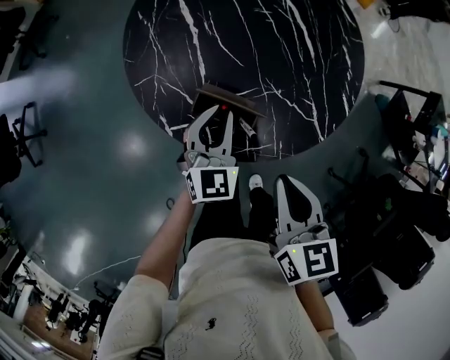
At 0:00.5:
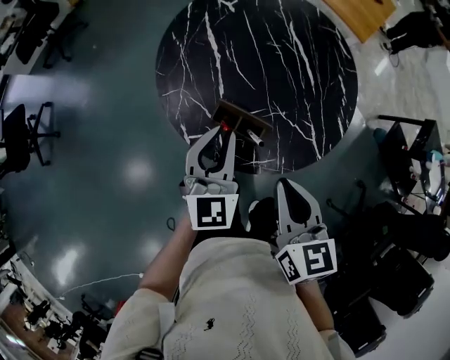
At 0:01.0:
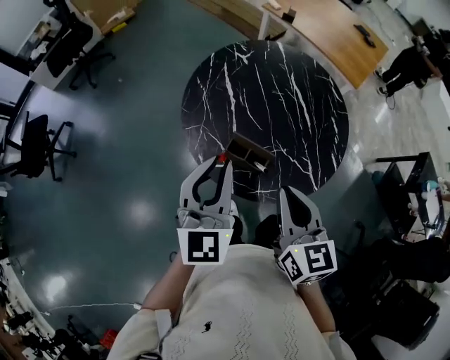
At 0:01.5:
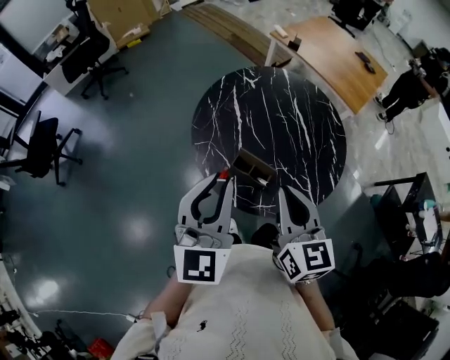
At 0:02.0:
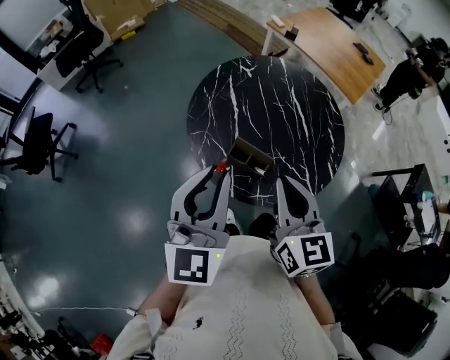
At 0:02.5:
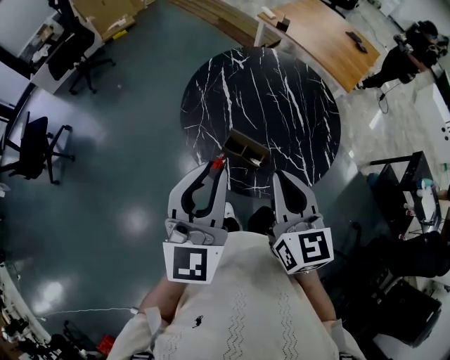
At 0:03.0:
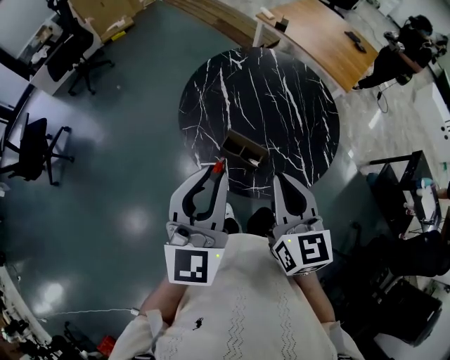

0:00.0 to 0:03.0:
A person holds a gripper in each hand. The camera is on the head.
0:00.0 to 0:01.5: The right gripper is displaced upward by roughly 20 cm, and rotates some 30 degrees; the left gripper heads upward, covering some 35 cm, and swivels roughly 30 degrees.
0:01.5 to 0:03.0: There are only small adjustments of the grippers.

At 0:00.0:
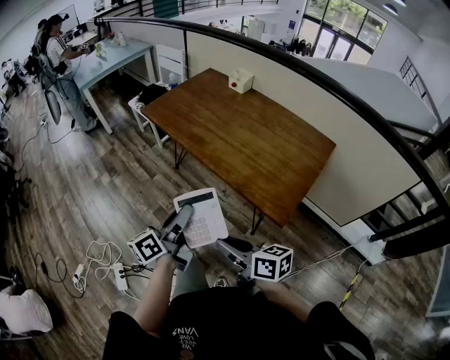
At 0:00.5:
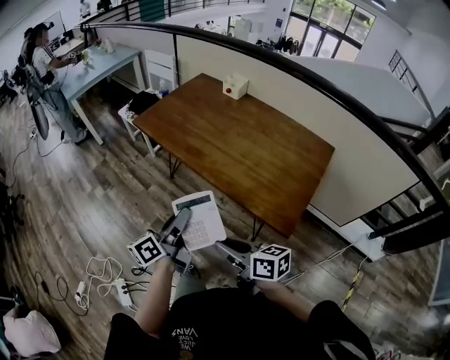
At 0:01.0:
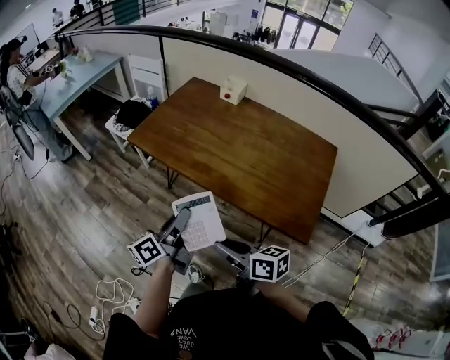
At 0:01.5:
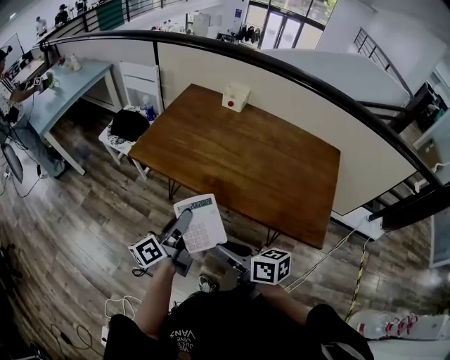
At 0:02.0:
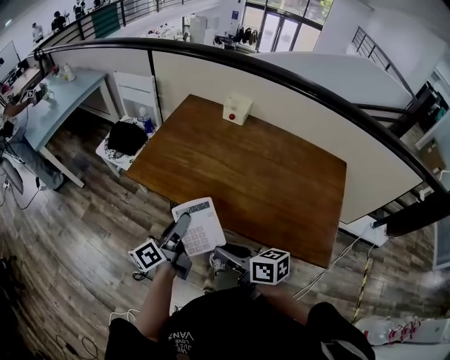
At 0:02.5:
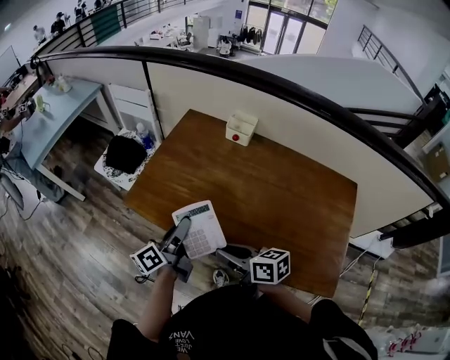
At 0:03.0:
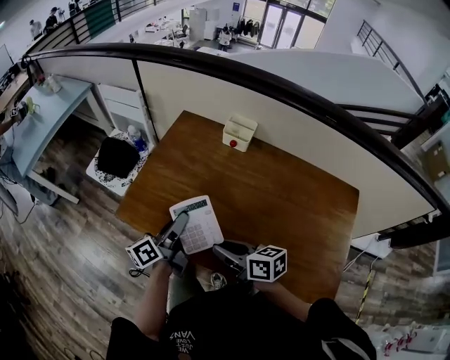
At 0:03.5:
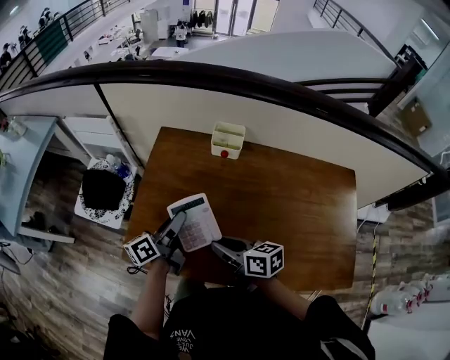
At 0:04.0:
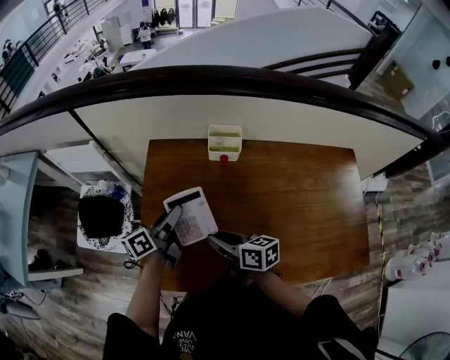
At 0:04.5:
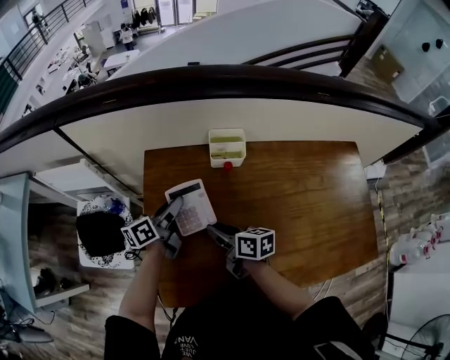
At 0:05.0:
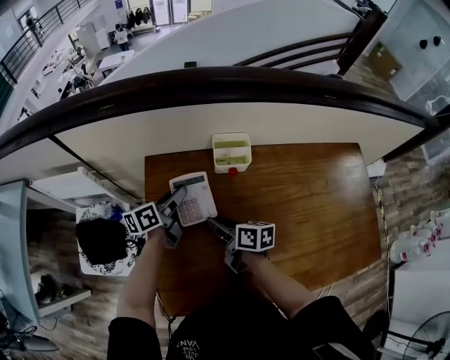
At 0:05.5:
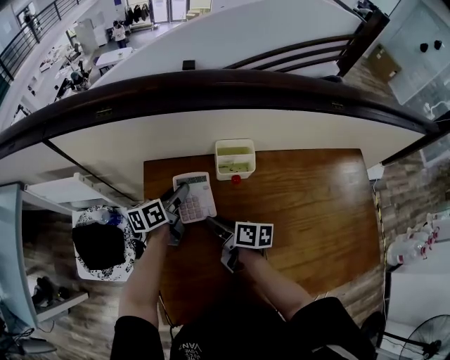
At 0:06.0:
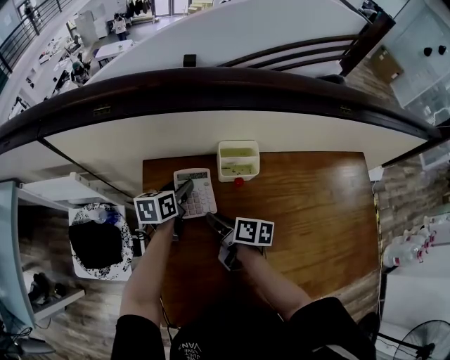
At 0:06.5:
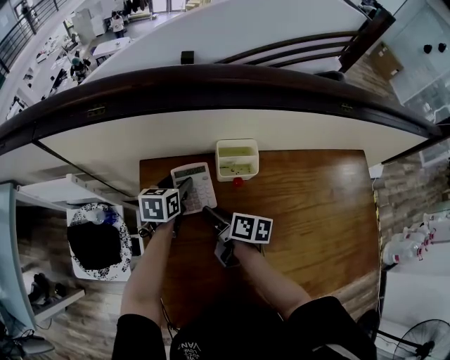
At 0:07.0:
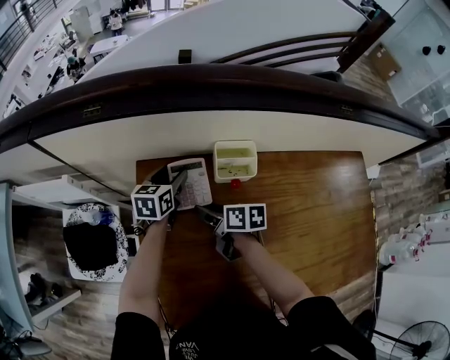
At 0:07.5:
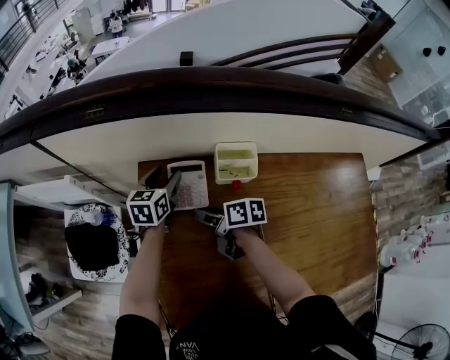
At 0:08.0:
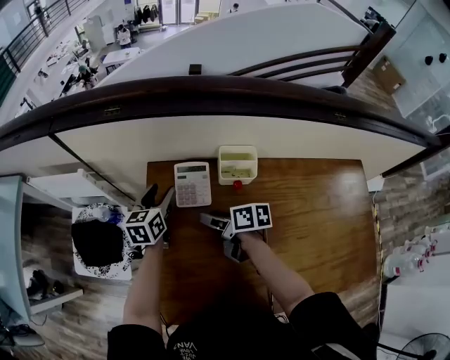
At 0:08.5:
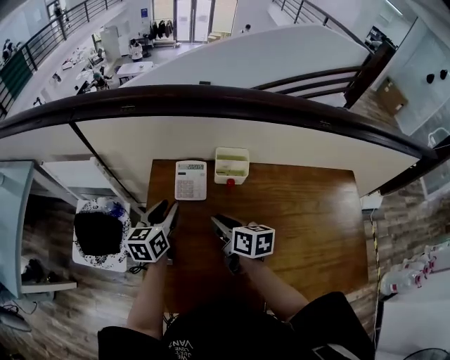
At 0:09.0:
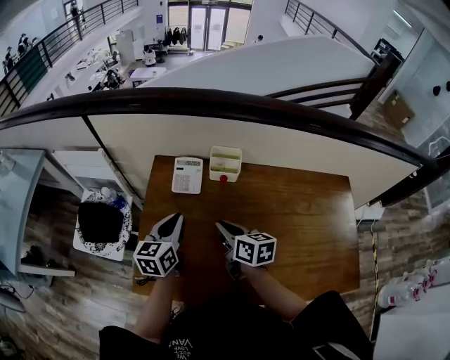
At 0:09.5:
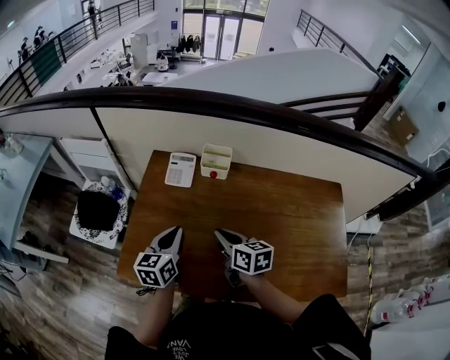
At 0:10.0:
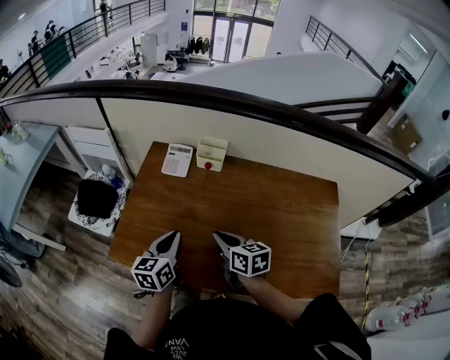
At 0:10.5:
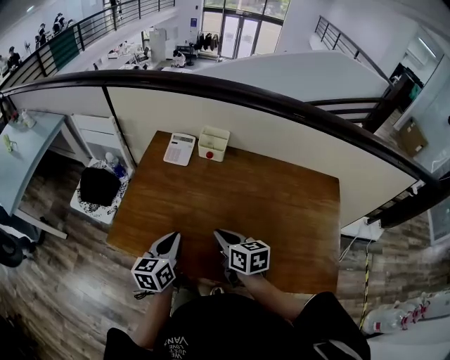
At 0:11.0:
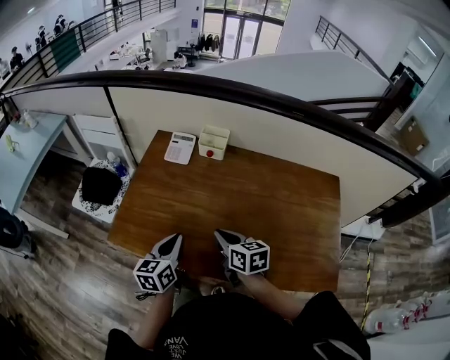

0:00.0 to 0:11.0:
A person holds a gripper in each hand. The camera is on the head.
0:00.0 to 0:02.0: The left gripper is displaced forward by about 35 cm, while the right gripper goes some 35 cm forward and to the left.
0:02.0 to 0:03.5: Both grippers move forward, some 30 cm.
0:03.5 to 0:05.5: The right gripper is displaced forward and downward by approximately 25 cm, and changes its angle by roughly 30 degrees; the left gripper goes approximately 30 cm forward, and changes its angle by some 30 degrees.
0:05.5 to 0:07.5: The left gripper moves forward, about 5 cm, rotates about 30 degrees, and opens; the right gripper ends up about 5 cm from where it was, and opens its fingers.
0:07.5 to 0:09.0: The right gripper heads backward, upward and to the right, covering roughly 20 cm, changes its angle by about 30 degrees, and closes its fingers, while the left gripper is displaced backward and upward by roughly 30 cm, and closes up.
0:09.0 to 0:11.0: The right gripper shifts approximately 20 cm backward and to the right, while the left gripper shifts some 20 cm backward.

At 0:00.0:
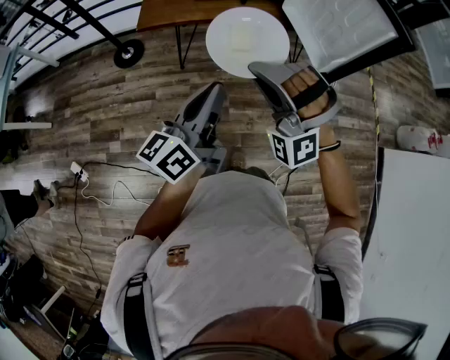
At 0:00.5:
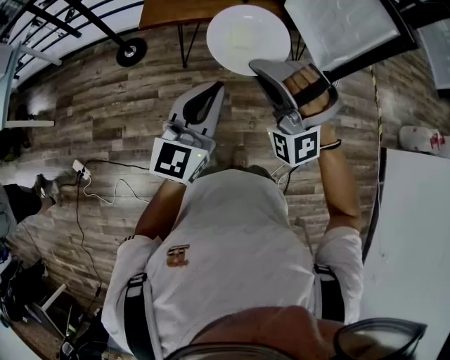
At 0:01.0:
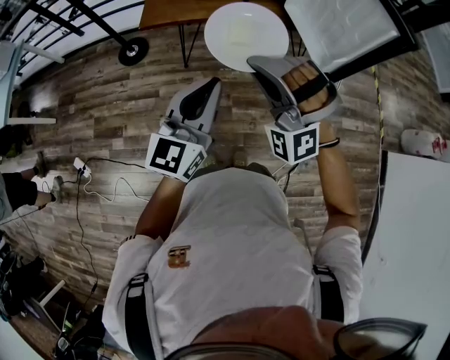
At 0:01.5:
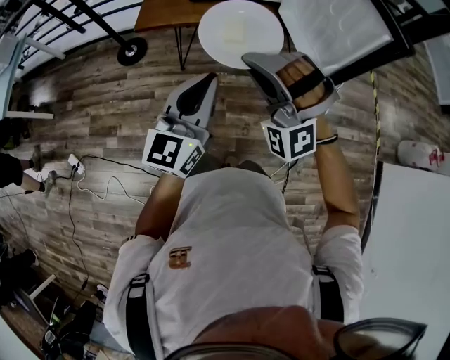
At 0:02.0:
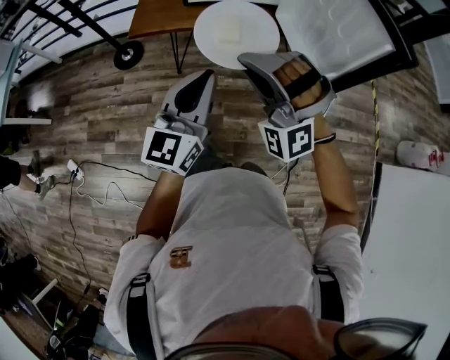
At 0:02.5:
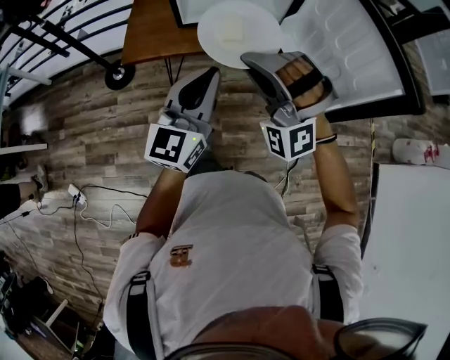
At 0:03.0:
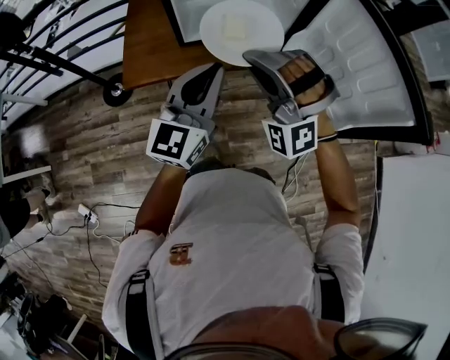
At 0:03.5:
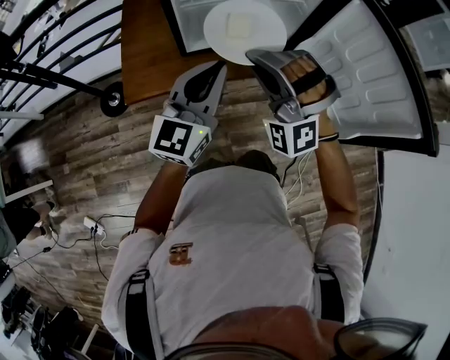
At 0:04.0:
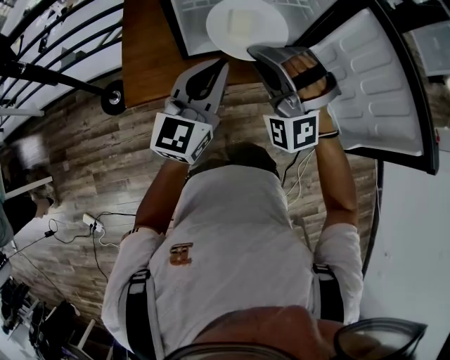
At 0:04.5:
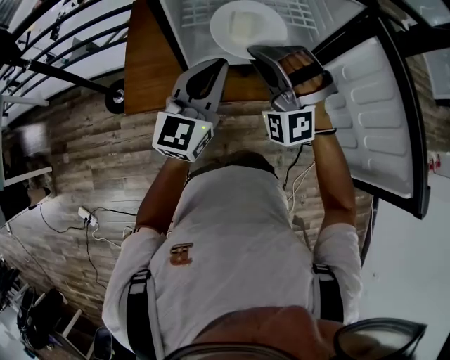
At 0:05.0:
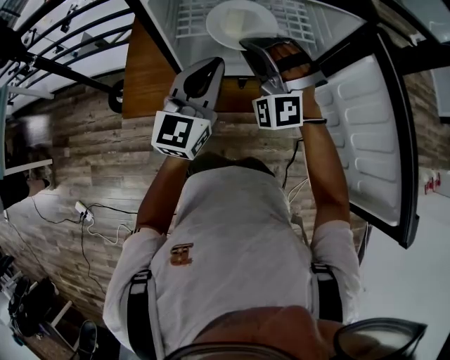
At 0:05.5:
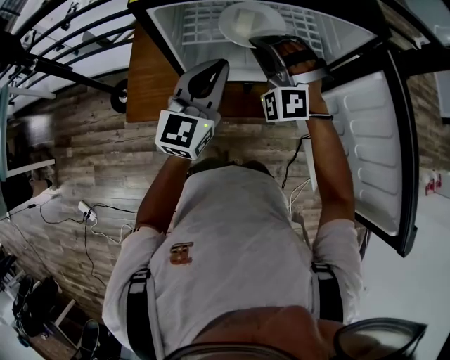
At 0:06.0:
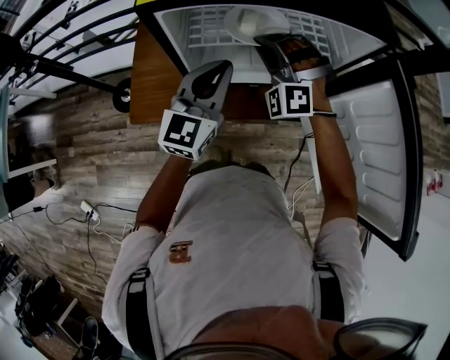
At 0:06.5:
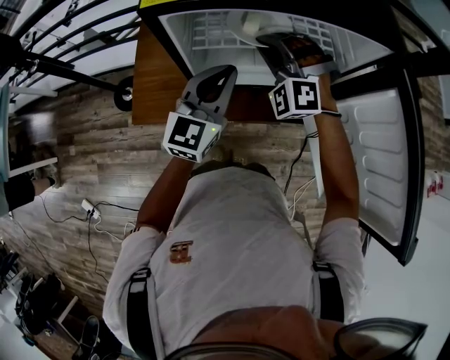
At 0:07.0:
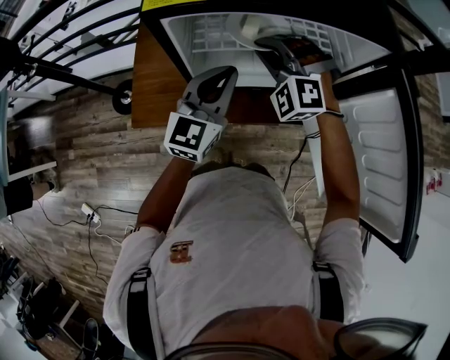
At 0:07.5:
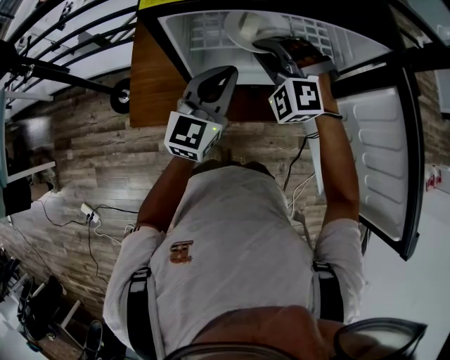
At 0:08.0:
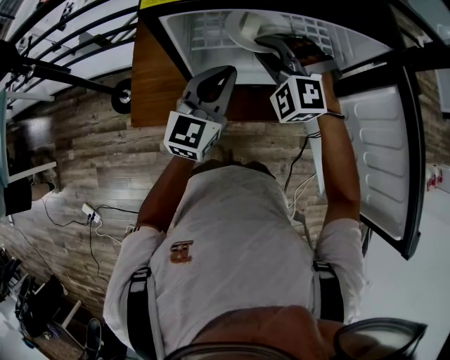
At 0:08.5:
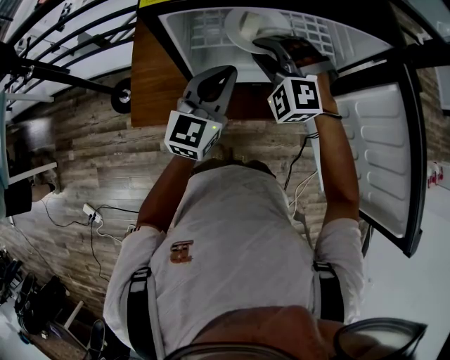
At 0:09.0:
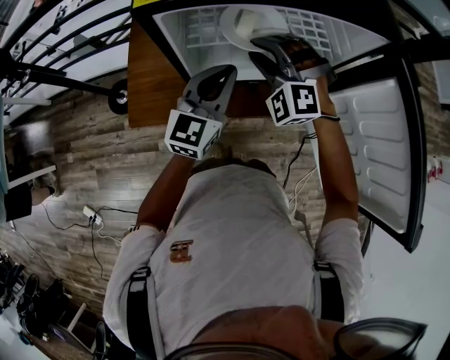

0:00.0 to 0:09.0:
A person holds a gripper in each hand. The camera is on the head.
0:00.0 to 0:02.0: The two grippers go about 10 cm forward and to the right. The left gripper rotates approximately 40 degrees.
0:02.0 to 0:04.5: Both grippers are carried forward, roughly 40 cm.
0:04.5 to 0:07.0: The grippers both shift forward by about 15 cm. The right gripper rotates about 20 degrees.
0:07.0 to 0:09.0: The right gripper opens.

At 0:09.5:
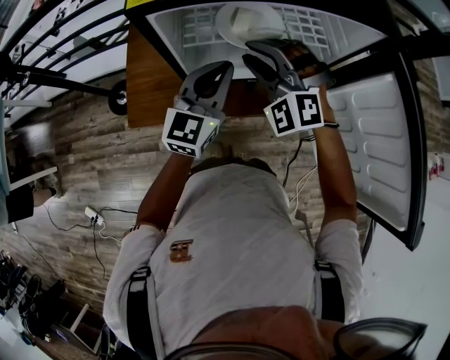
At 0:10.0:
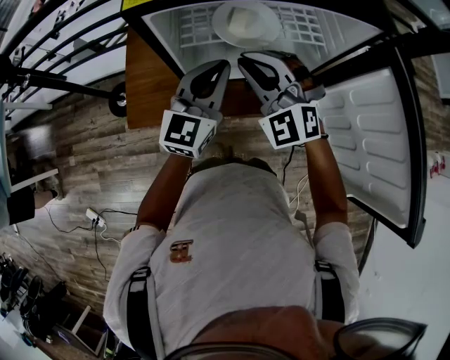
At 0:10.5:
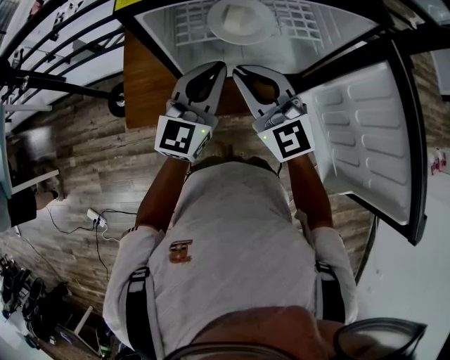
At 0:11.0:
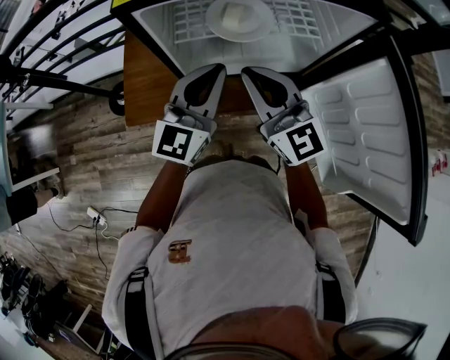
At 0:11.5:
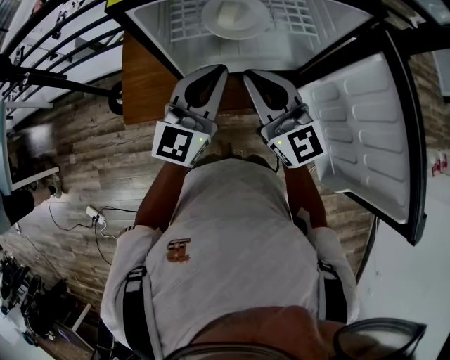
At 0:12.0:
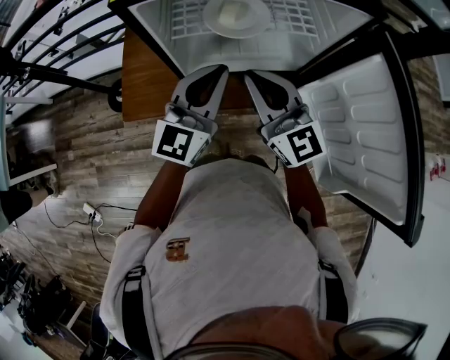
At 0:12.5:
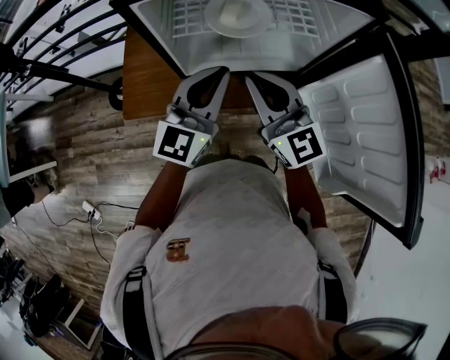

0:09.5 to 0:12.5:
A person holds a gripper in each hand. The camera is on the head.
0:09.5 to 0:11.0: The right gripper goes approximately 5 cm backward, twists roughly 60 degrees clockwise, seen from behind, and closes its fingers.
0:11.0 to 0:12.5: The grippers stay close to where they were, moving slightly.
